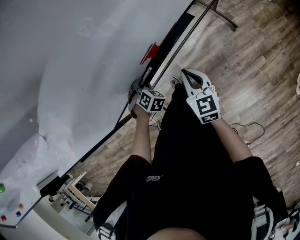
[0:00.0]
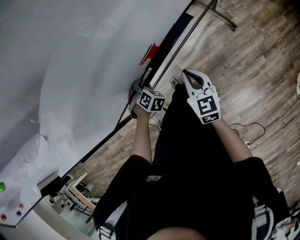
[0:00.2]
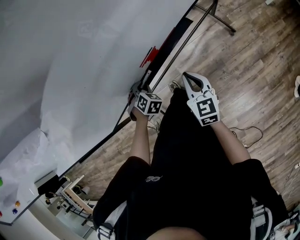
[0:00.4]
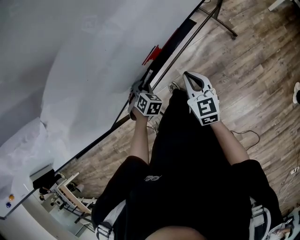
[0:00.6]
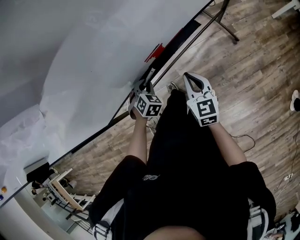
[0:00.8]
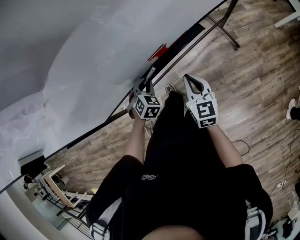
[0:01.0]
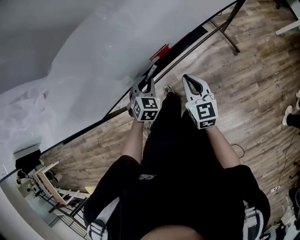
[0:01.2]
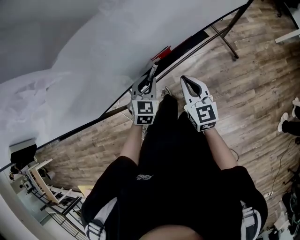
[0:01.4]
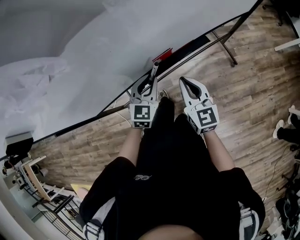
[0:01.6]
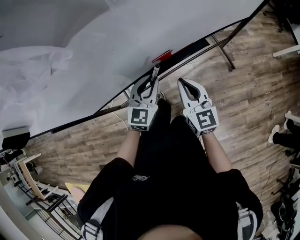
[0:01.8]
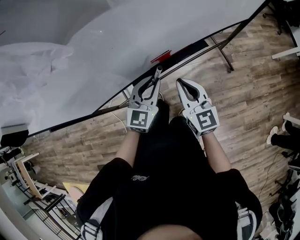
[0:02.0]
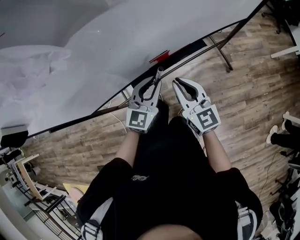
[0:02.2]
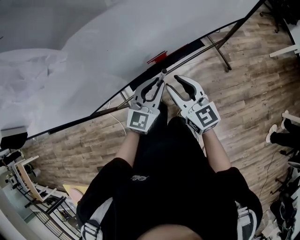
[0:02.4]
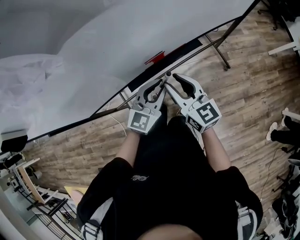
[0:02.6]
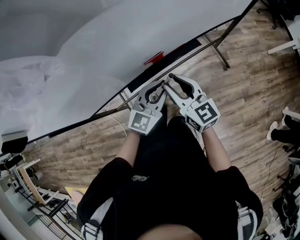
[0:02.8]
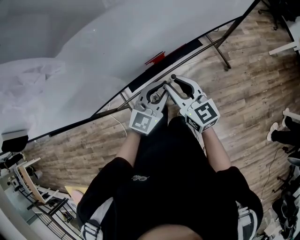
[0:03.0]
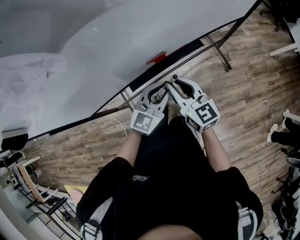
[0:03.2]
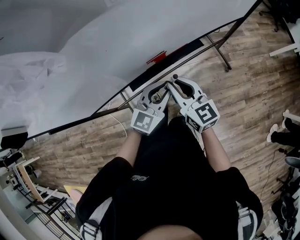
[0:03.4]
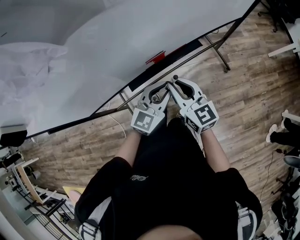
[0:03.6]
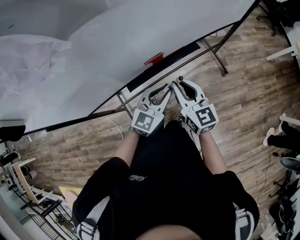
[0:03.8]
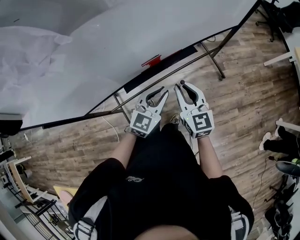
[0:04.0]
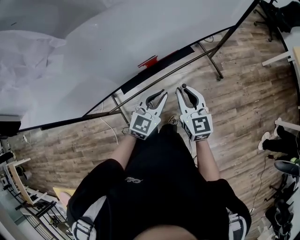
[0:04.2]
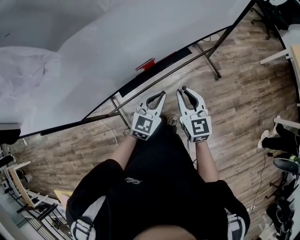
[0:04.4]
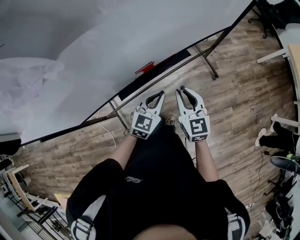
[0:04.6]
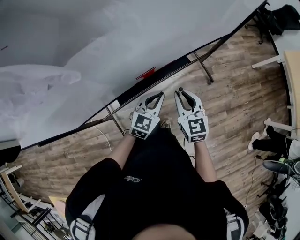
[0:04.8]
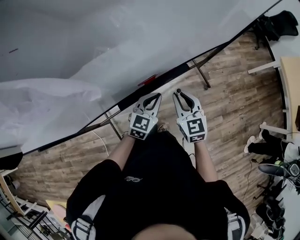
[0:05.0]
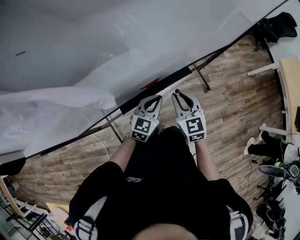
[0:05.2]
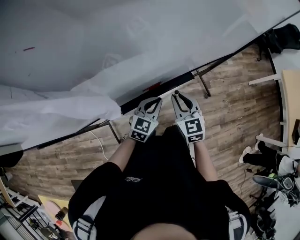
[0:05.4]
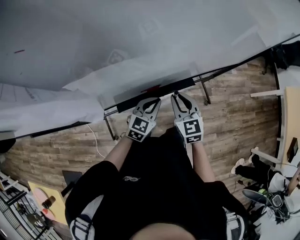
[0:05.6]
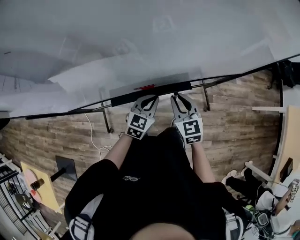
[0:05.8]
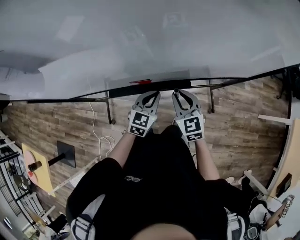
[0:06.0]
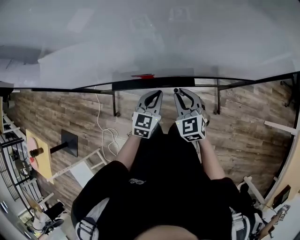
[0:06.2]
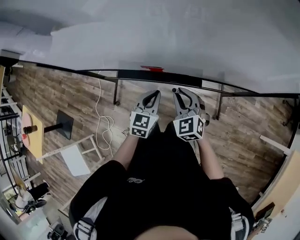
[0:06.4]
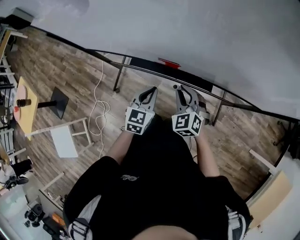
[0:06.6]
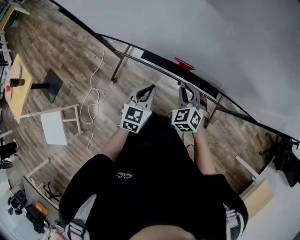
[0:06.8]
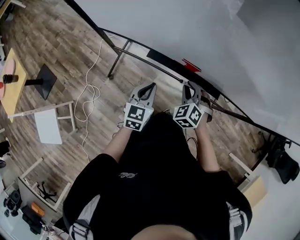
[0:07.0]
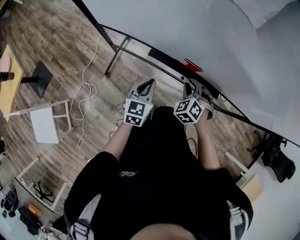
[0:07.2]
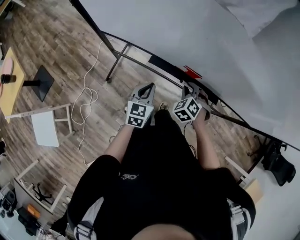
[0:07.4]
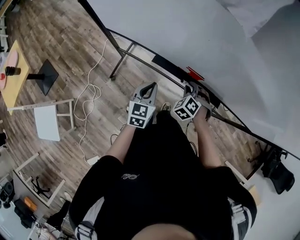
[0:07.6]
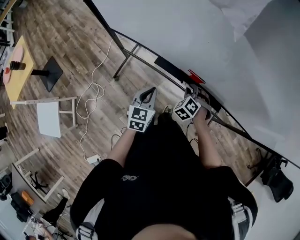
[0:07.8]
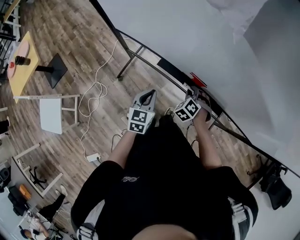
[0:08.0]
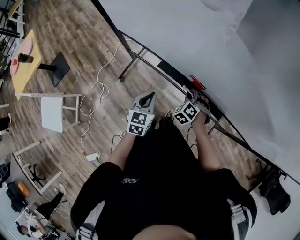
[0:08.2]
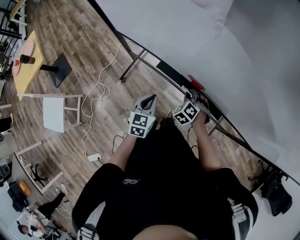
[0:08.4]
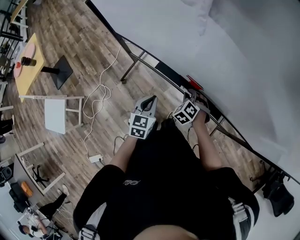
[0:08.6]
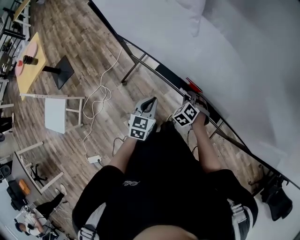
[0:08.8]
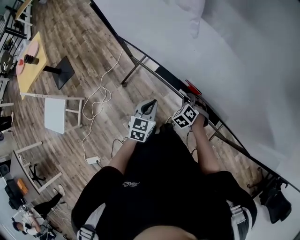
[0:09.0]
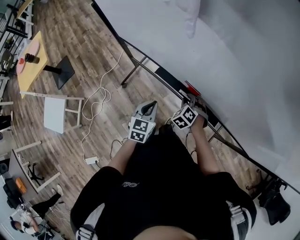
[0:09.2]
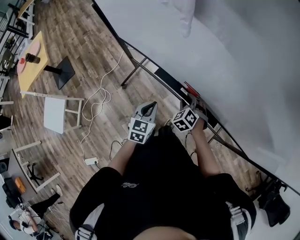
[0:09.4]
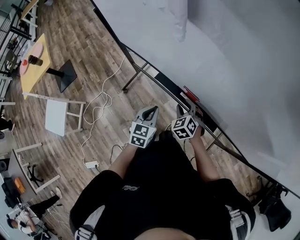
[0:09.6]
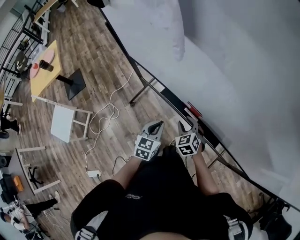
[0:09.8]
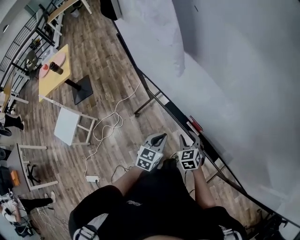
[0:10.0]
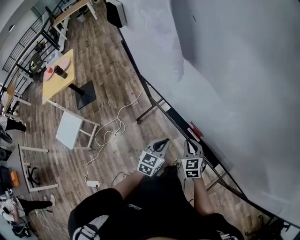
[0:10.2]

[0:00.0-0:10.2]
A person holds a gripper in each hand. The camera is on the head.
0:00.0 to 0:01.4: The right gripper is displaced upward by approximately 5 cm. The left gripper goes some 10 cm upward, and turns by approximately 40 degrees.
0:01.4 to 0:03.0: The right gripper heads upward, covering about 5 cm, and opens, while the left gripper heads to the right and upward, covering approximately 15 cm, and rotates some 30 degrees.
0:03.0 to 0:04.4: The left gripper ends up some 5 cm from where it was, while the right gripper travels to the right by approximately 10 cm, and rotates about 20 degrees.
0:04.4 to 0:05.8: The grippers both shift forward by about 15 cm. The left gripper swivels roughly 20 degrees. The right gripper turns by roughly 30 degrees.
0:05.8 to 0:07.2: The right gripper moves about 15 cm, and twists roughly 60 degrees counterclockwise, seen from behind, while the left gripper changes place by some 20 cm, and turns by approximately 50 degrees.
0:07.2 to 0:08.8: The right gripper is displaced downward by some 10 cm.
0:08.8 to 0:10.2: The right gripper goes roughly 10 cm upward, rotates some 40 degrees, and opens and closes again. The left gripper changes place by roughly 5 cm.

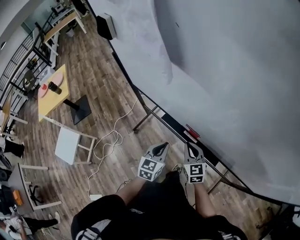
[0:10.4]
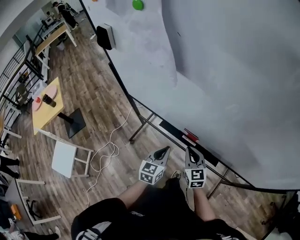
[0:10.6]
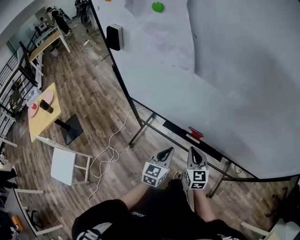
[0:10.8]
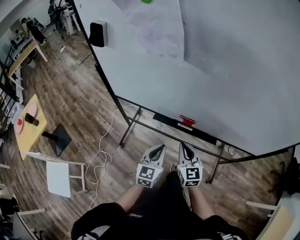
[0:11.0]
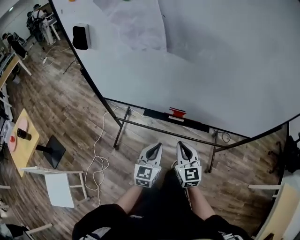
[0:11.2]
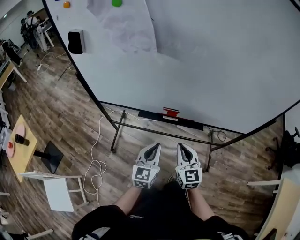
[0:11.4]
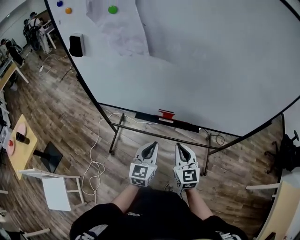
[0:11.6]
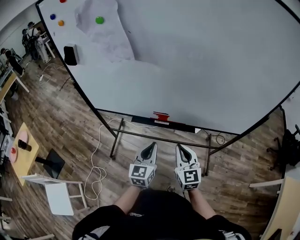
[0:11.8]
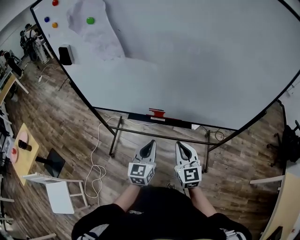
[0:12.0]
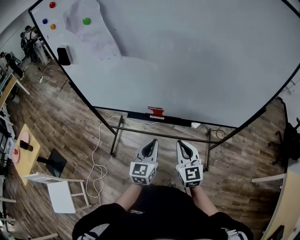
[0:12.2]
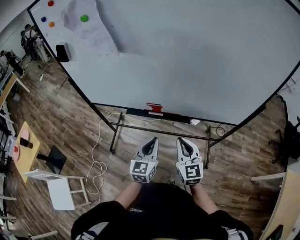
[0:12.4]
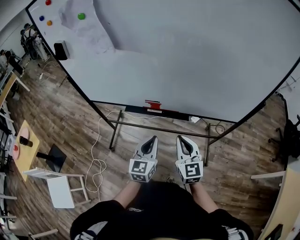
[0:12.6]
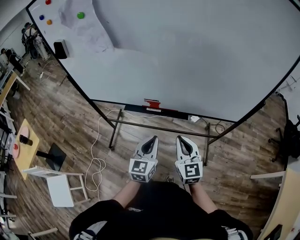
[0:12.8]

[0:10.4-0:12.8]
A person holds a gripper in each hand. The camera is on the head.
0:10.4 to 0:11.6: The right gripper moves approximately 20 cm, and swivels about 30 degrees, while the left gripper shifts by roughly 15 cm, and changes its angle by approximately 30 degrees.
0:11.6 to 0:12.8: The two grippers go roughly 10 cm to the right.

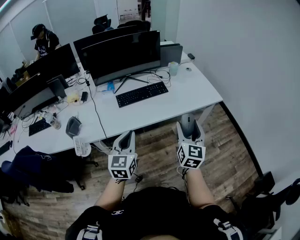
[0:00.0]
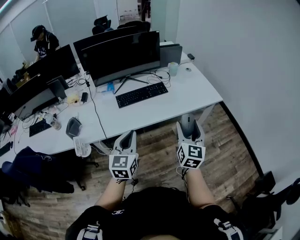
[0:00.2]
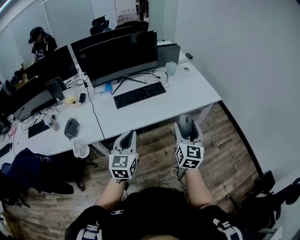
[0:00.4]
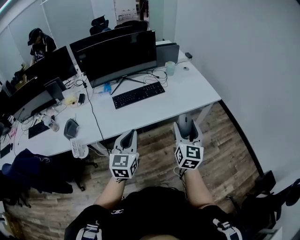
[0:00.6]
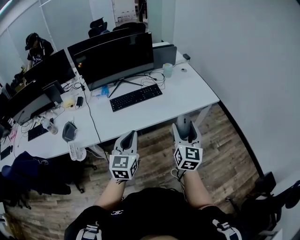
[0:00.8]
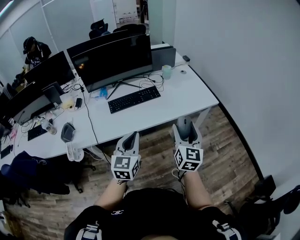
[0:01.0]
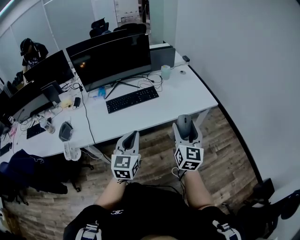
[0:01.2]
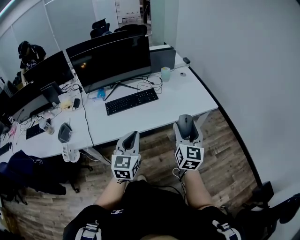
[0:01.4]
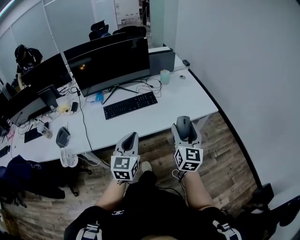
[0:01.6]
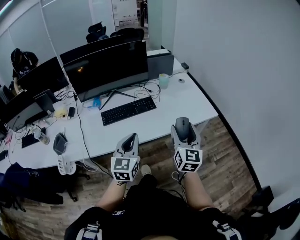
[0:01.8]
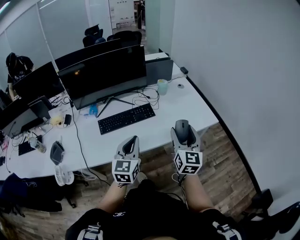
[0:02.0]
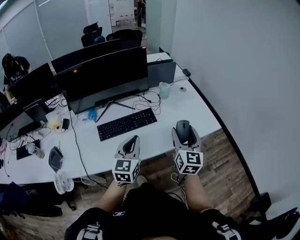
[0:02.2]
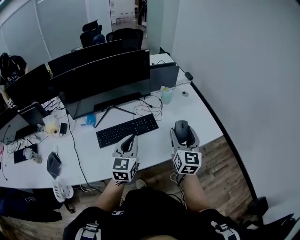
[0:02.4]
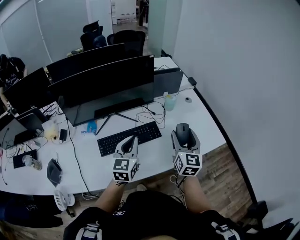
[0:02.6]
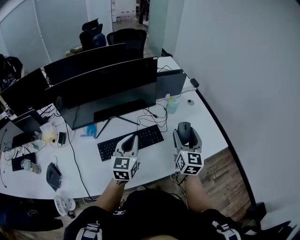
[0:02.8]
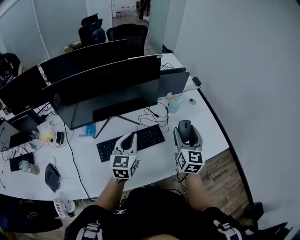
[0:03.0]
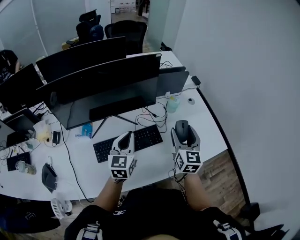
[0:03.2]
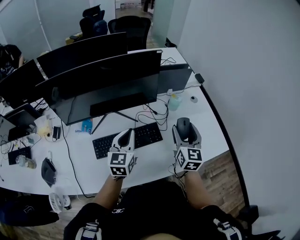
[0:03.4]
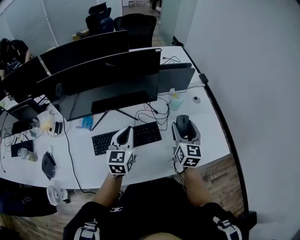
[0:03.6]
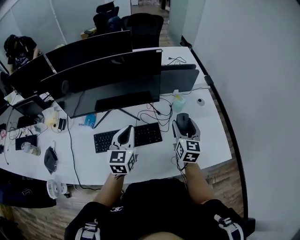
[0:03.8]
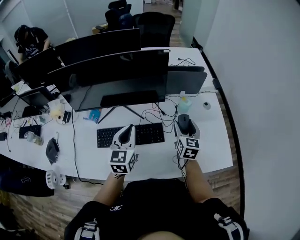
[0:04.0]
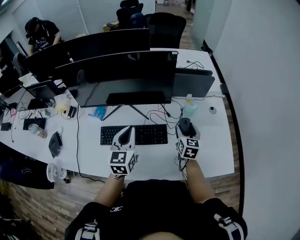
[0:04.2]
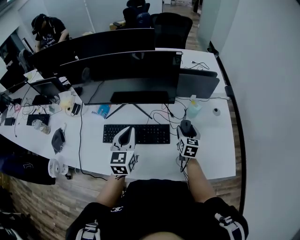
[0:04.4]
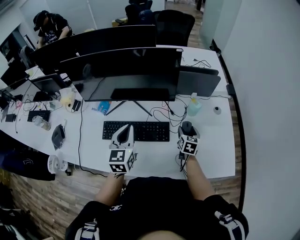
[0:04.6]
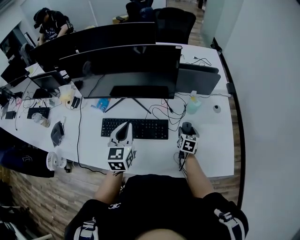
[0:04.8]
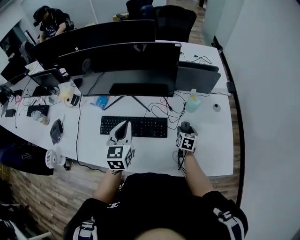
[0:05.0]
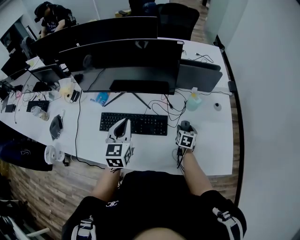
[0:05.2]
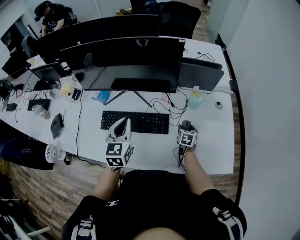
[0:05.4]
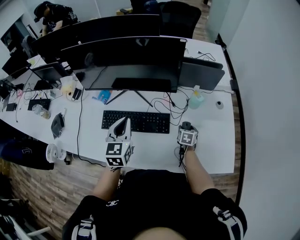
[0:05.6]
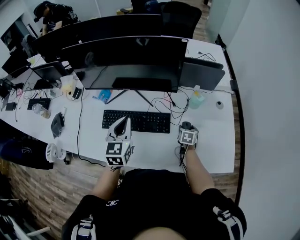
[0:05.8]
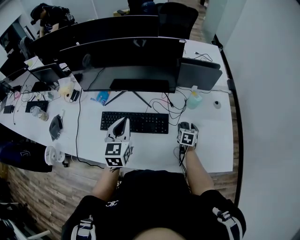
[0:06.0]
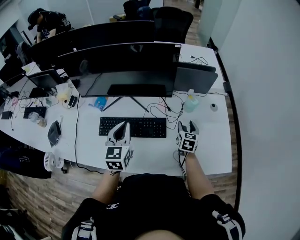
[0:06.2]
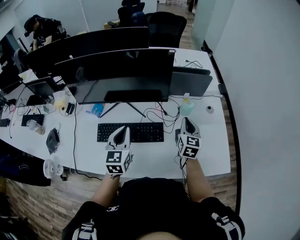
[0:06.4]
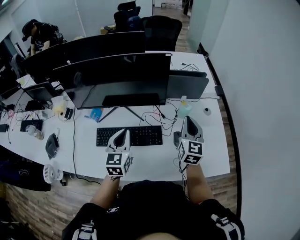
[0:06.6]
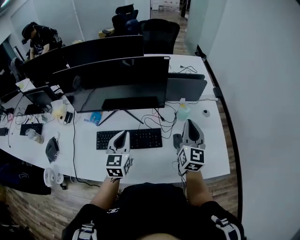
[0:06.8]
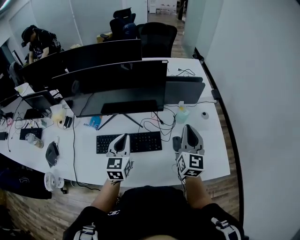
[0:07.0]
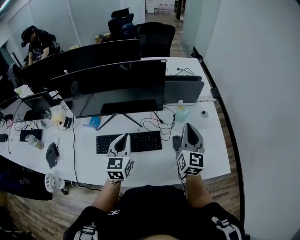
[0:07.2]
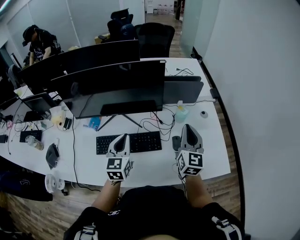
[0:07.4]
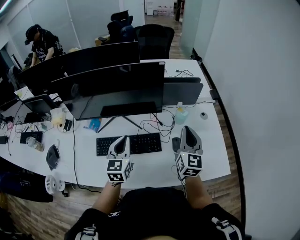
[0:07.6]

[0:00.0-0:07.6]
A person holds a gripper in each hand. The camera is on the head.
0:00.0 to 0:01.6: The right gripper shifts roughly 15 cm forward and to the right, while the left gripper travels to the right and forward by approximately 15 cm.
0:01.6 to 0:03.0: The pair of grippers is taken forward, some 40 cm.
0:03.0 to 0:04.6: The left gripper swivels roughly 30 degrees; the right gripper shifts approximately 25 cm downward and forward, and changes its angle by about 30 degrees.
0:04.6 to 0:06.0: The right gripper travels downward by some 5 cm.
0:06.0 to 0:07.6: The right gripper goes about 30 cm upward, tilts its fingers some 40 degrees upward, and closes its fingers.

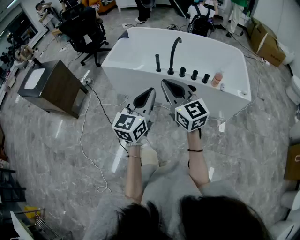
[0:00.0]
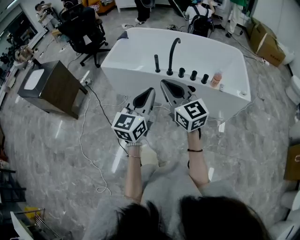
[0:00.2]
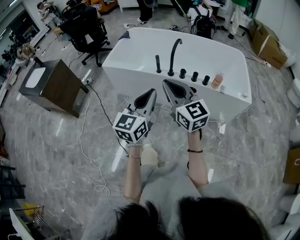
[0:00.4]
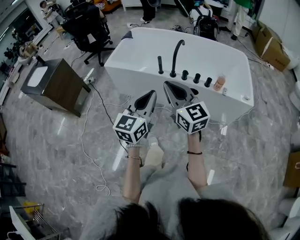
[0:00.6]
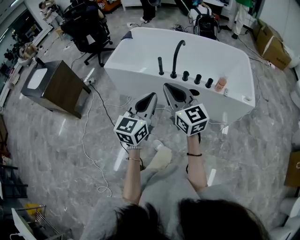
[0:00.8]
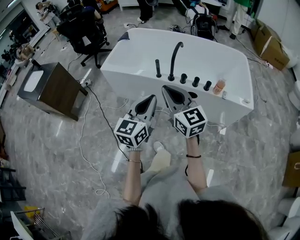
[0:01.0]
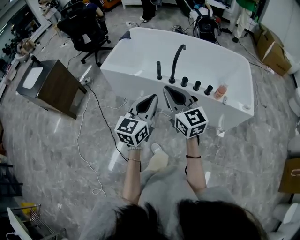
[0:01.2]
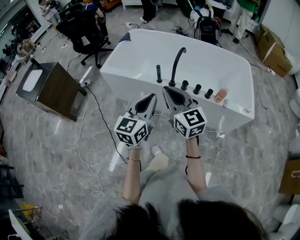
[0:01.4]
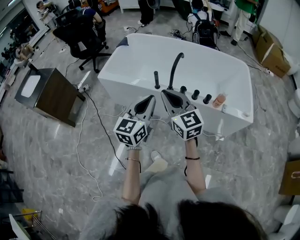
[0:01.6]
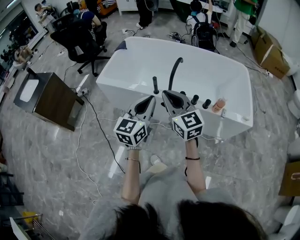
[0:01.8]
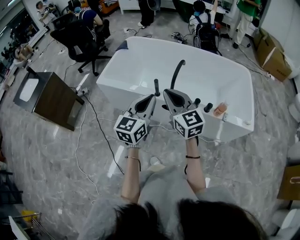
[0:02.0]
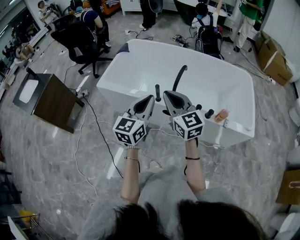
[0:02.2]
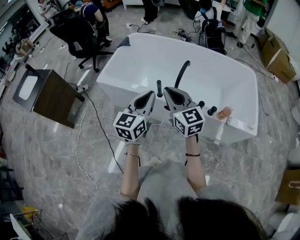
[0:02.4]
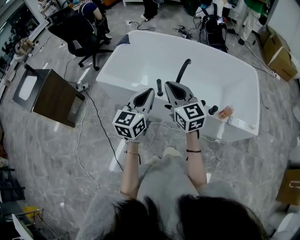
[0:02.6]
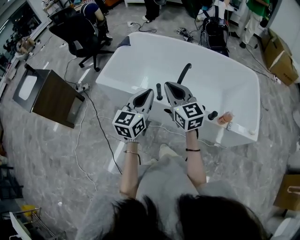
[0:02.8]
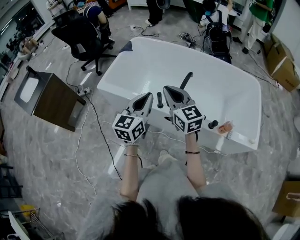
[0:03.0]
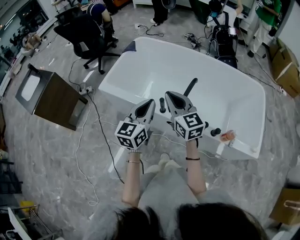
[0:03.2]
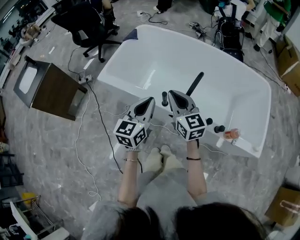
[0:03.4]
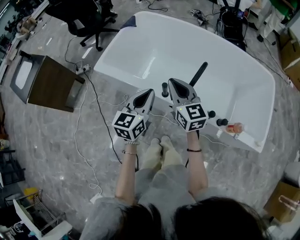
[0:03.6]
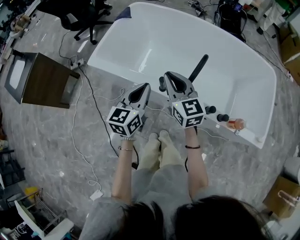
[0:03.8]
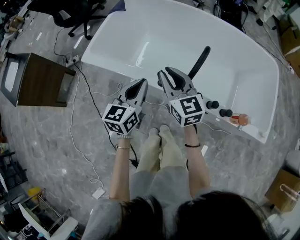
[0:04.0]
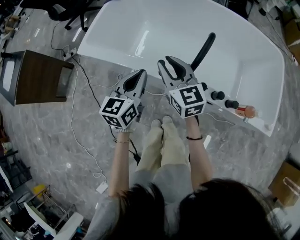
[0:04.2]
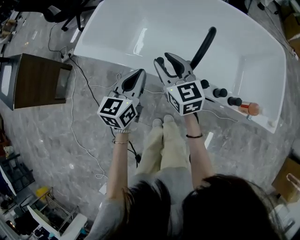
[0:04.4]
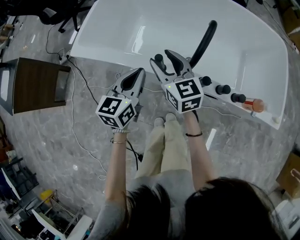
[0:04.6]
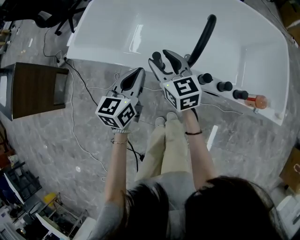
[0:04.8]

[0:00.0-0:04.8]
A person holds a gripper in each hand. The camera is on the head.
0:00.0 to 0:01.6: The two grippers go some 15 cm forward.
0:01.6 to 0:03.2: Both grippers move forward, roughly 25 cm.
0:03.2 to 0:04.8: The grippers both shift downward by roughly 25 cm. The right gripper opens its fingers.
